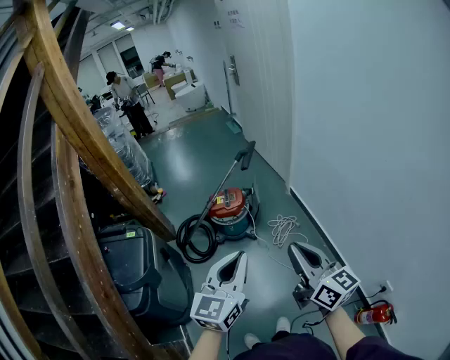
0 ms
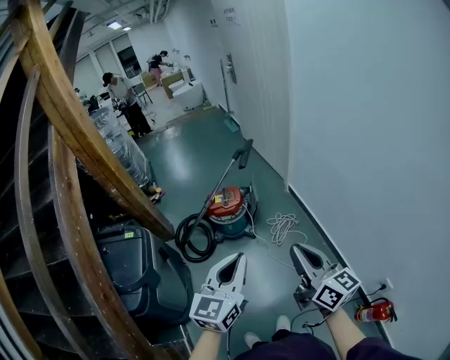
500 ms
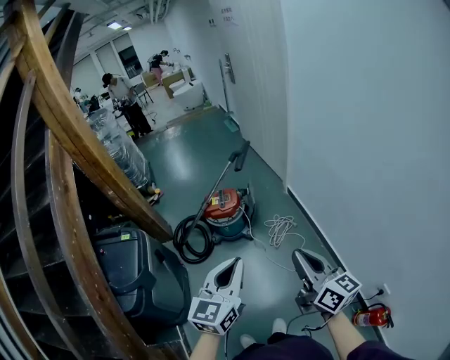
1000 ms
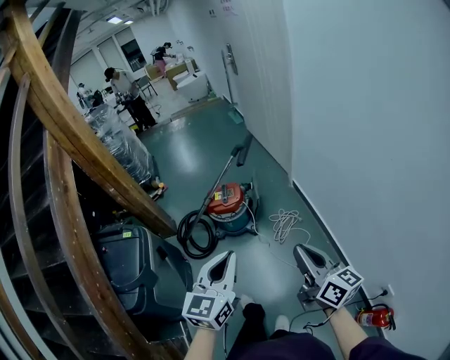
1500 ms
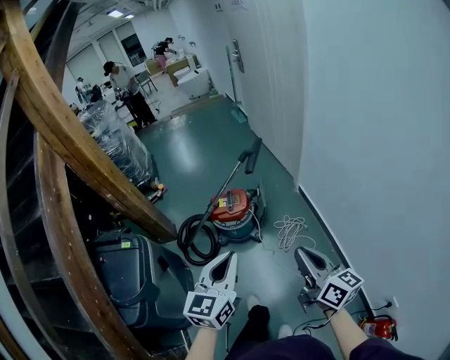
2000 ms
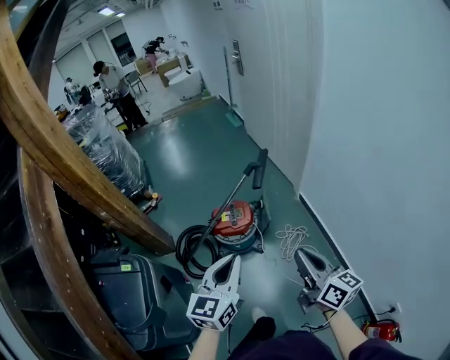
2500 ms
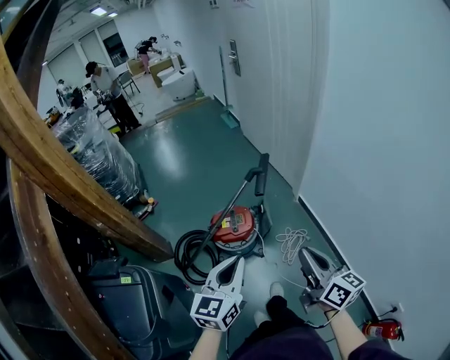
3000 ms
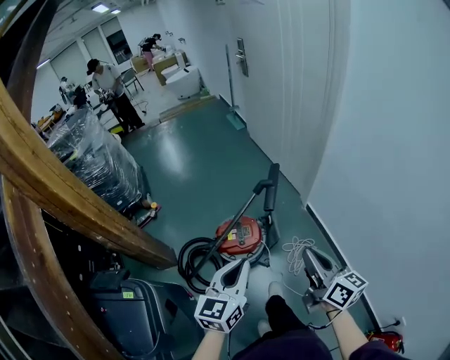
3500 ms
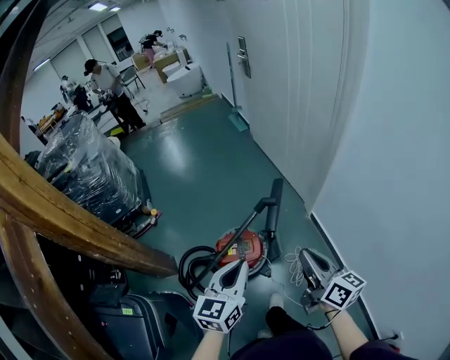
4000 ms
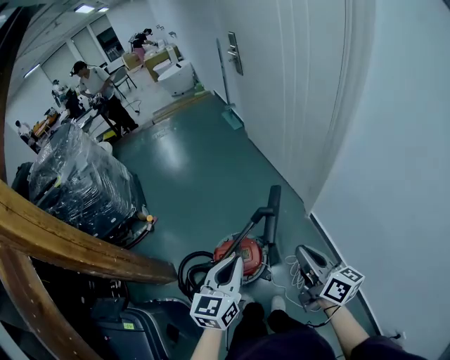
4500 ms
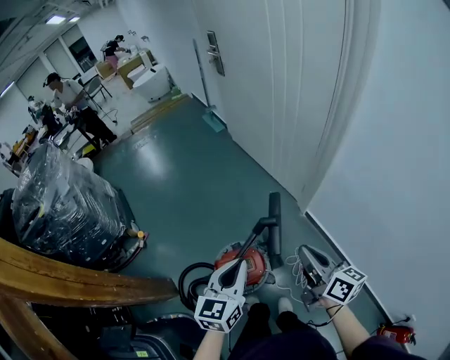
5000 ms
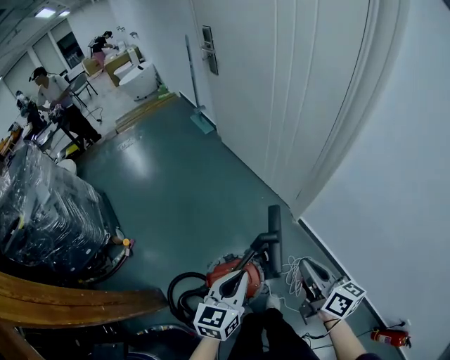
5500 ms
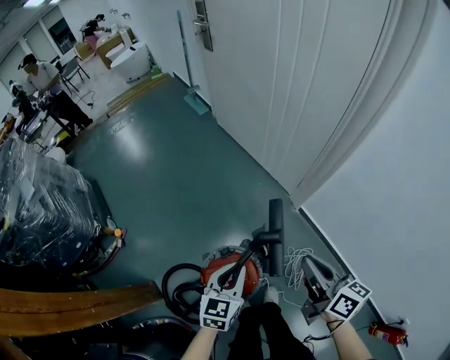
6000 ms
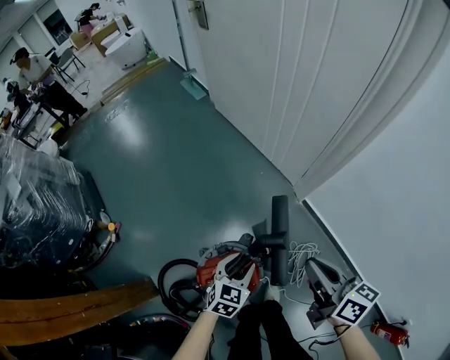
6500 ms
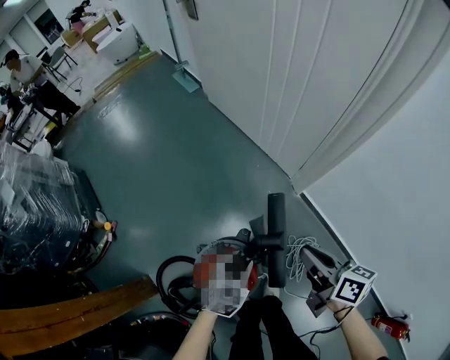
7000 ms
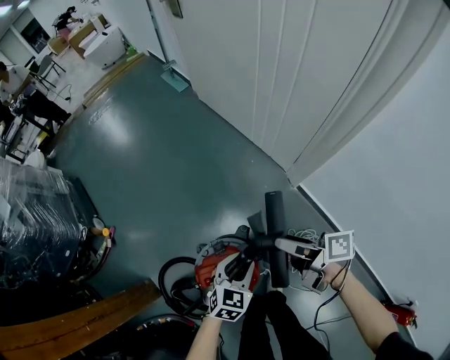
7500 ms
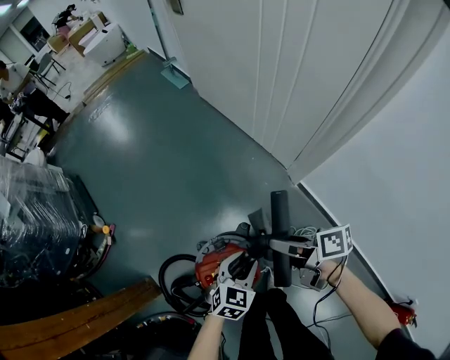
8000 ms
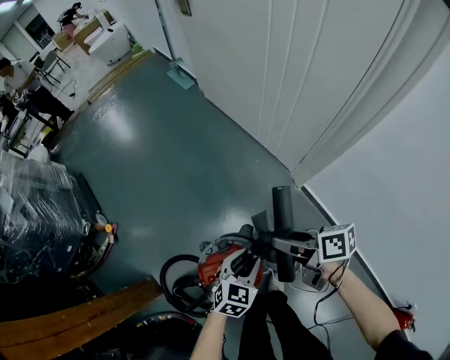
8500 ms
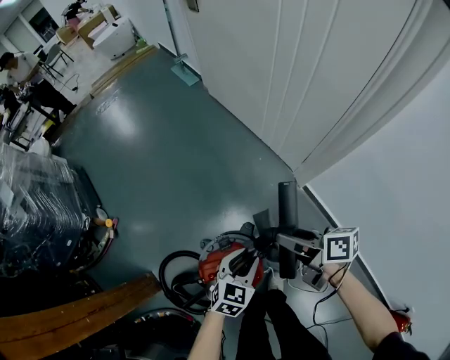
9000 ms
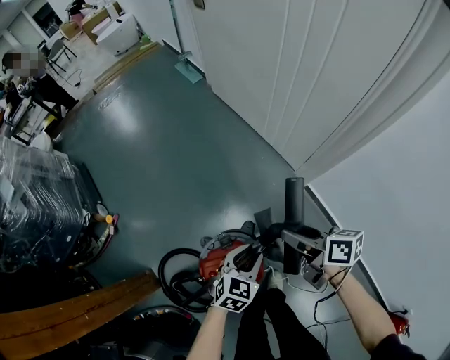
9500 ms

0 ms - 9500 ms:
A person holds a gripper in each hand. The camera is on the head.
0 ms - 2000 ms: The left gripper moves forward, roughly 15 cm; the right gripper is displaced forward and downward by roughly 15 cm.
2000 ms - 4000 ms: The grippers both shift forward by roughly 35 cm.
4000 ms - 5500 ms: The right gripper travels forward by roughly 15 cm. Meanwhile the left gripper travels forward and downward by approximately 20 cm.
5500 ms - 7500 ms: The right gripper shifts about 25 cm downward and forward, rotates some 40 degrees, and opens, while the left gripper travels downward by about 25 cm, rotates about 30 degrees, and opens its fingers.
7500 ms - 9500 ms: The right gripper turns by roughly 20 degrees.

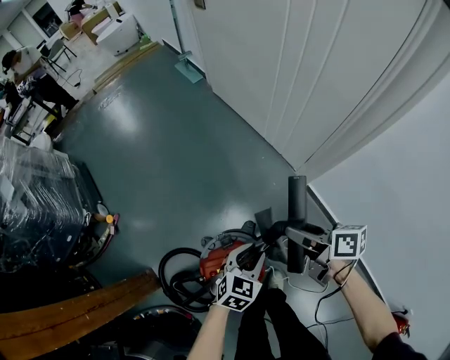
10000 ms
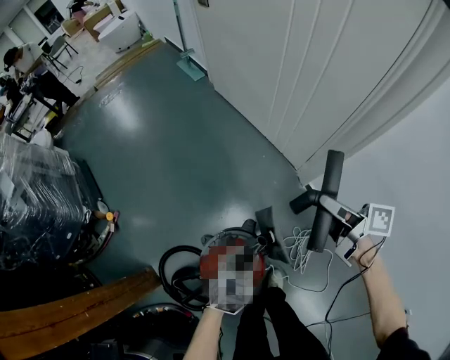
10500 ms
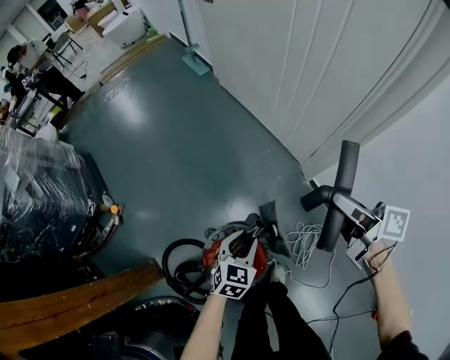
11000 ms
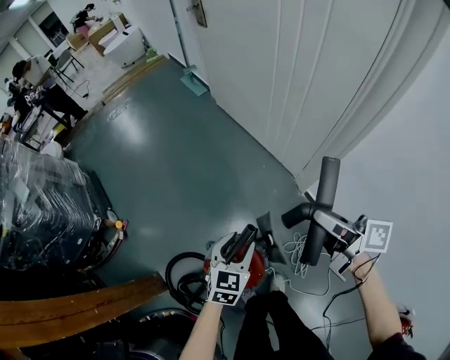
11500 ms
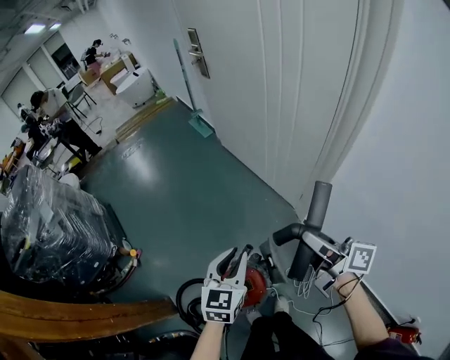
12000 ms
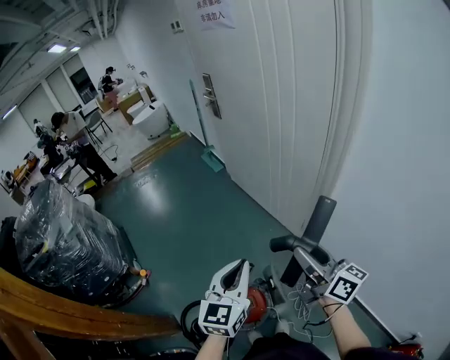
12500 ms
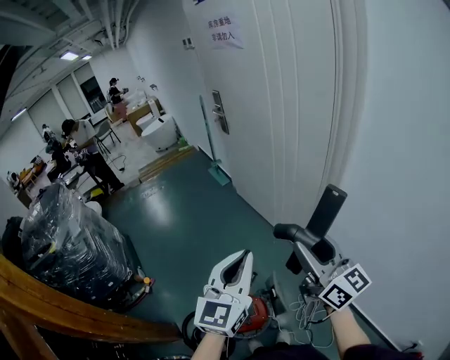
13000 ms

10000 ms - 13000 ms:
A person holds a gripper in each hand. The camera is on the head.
10000 ms - 11500 ms: The left gripper shifts about 10 cm upward, while the right gripper shifts approximately 15 cm upward.
11500 ms - 13000 ms: The two grippers go some 35 cm upward. The left gripper tilts its fingers roughly 30 degrees upward, and closes its fingers. The right gripper rolls counterclockwise, seen from behind, by some 50 degrees.

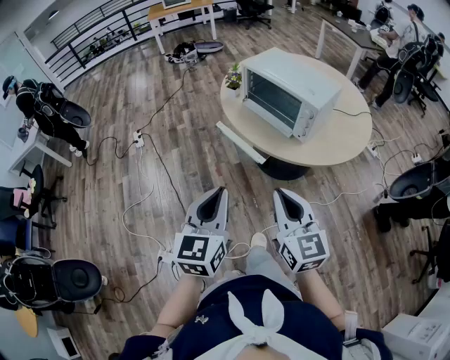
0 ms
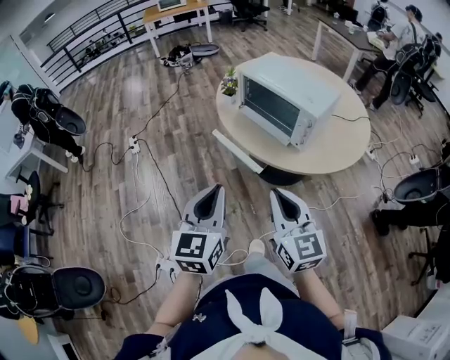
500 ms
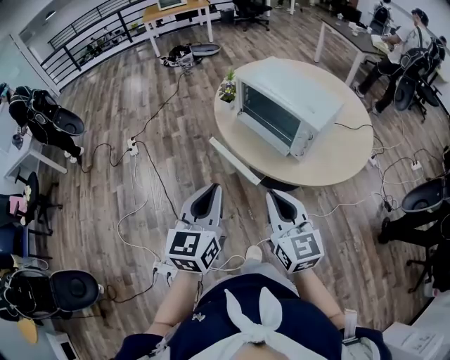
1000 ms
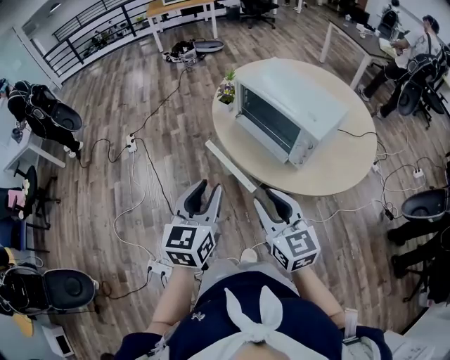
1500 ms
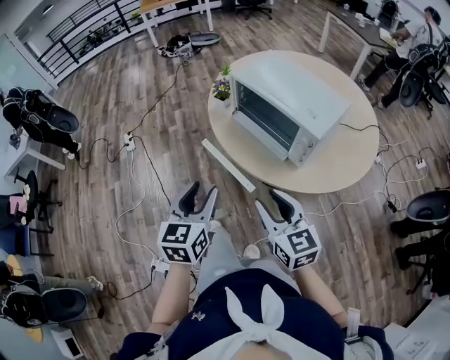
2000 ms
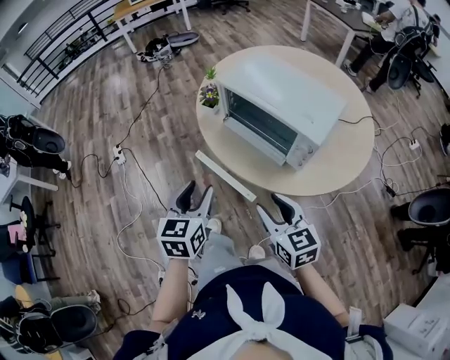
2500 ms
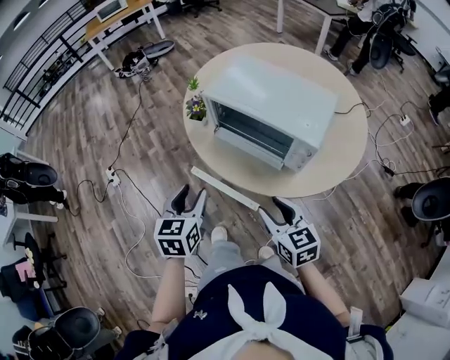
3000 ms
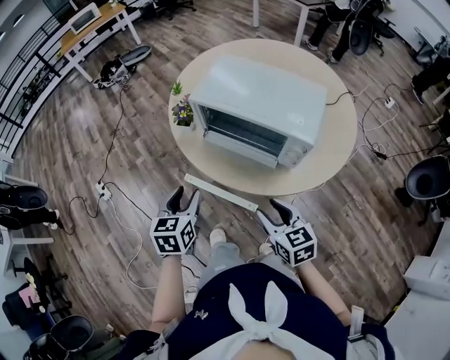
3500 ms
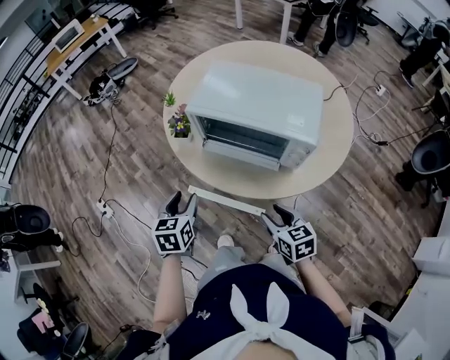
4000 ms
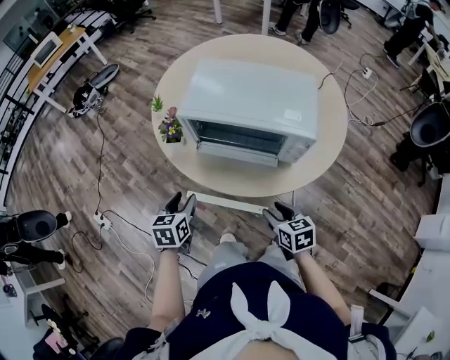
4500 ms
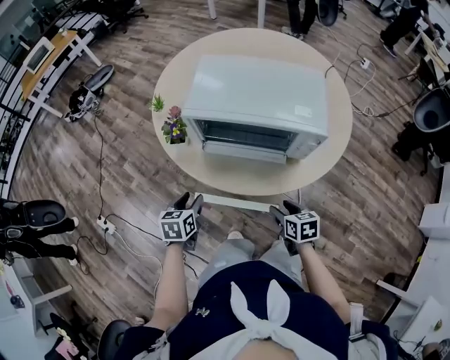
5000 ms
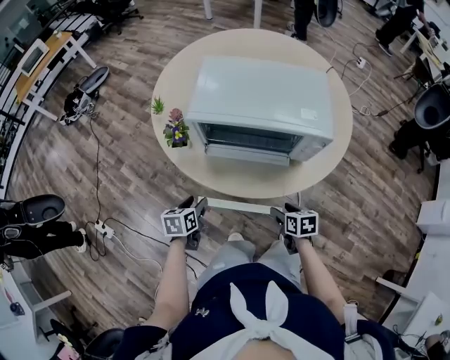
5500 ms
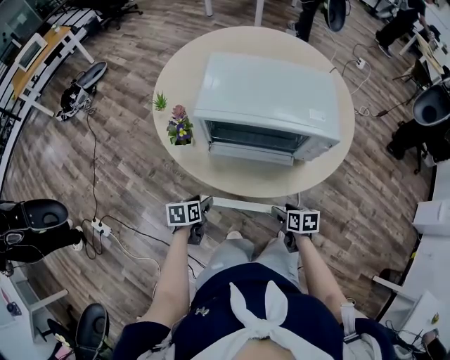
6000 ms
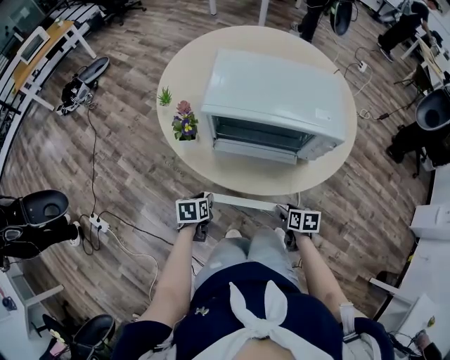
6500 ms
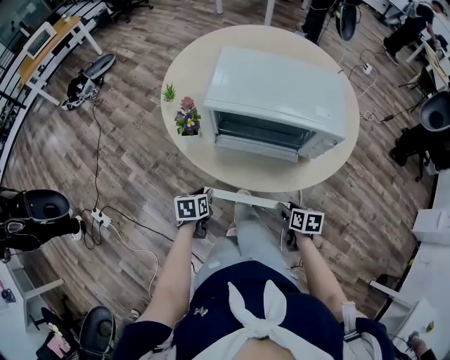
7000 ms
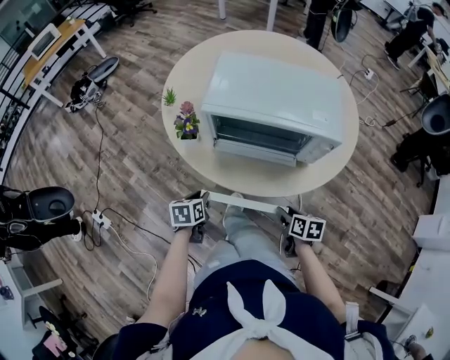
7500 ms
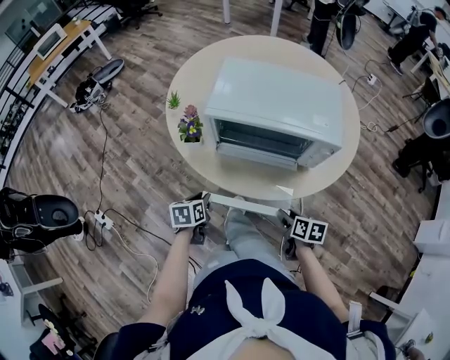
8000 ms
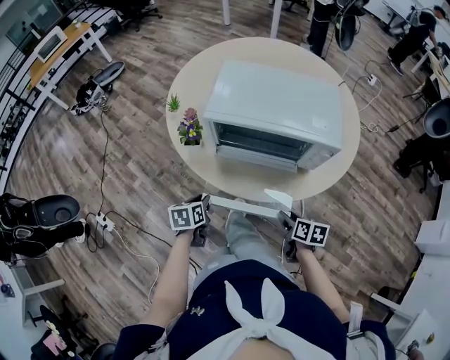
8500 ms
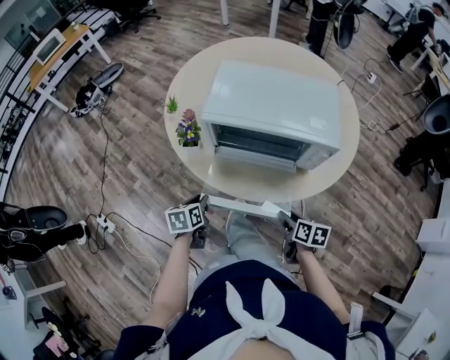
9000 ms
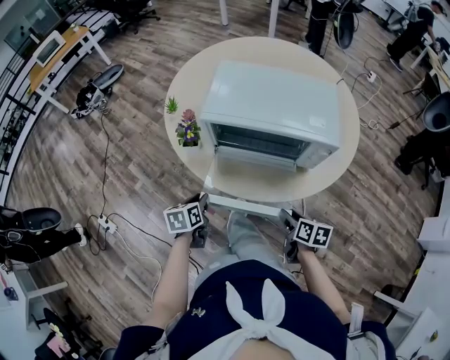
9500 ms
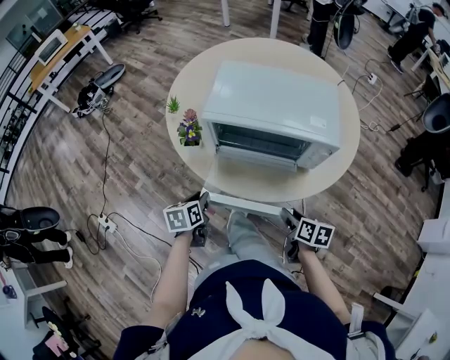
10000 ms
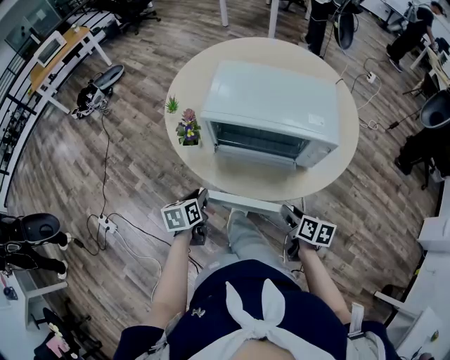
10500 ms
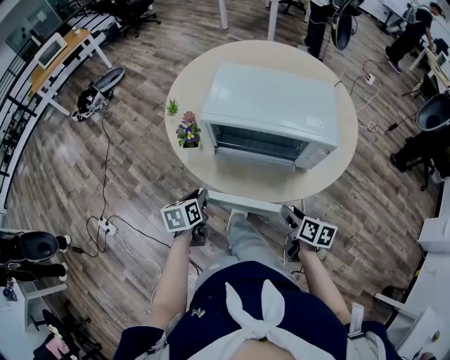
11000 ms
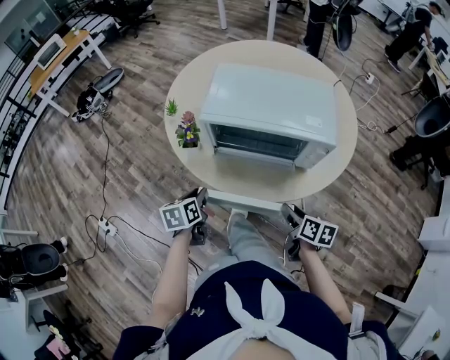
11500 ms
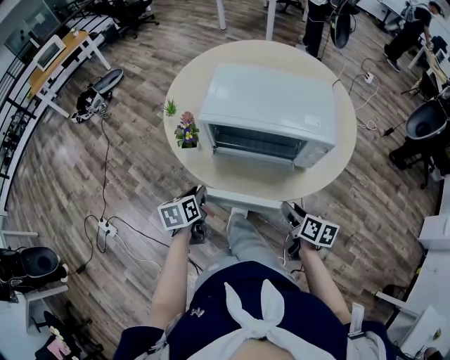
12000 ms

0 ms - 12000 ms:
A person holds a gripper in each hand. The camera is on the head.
0 ms - 2000 ms: The left gripper goes approximately 20 cm forward, and opens its fingers; the right gripper is displaced forward and downward by roughly 15 cm, and opens its fingers.
2000 ms - 4000 ms: The right gripper heads downward and forward, covering approximately 15 cm, and changes its angle by approximately 40 degrees. Meanwhile the left gripper heads forward and downward, covering some 25 cm, and swivels some 30 degrees.
4000 ms - 6000 ms: The two grippers go some 20 cm downward. The left gripper rotates approximately 30 degrees; the right gripper swivels some 40 degrees.
6000 ms - 8000 ms: The left gripper closes up.
8000 ms - 10000 ms: The grippers stay close to where they were, moving slightly.
10000 ms - 12000 ms: The grippers stay close to where they were, moving slightly.

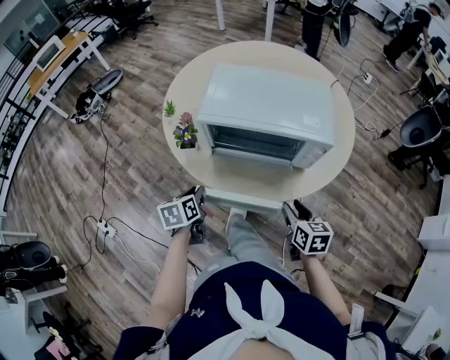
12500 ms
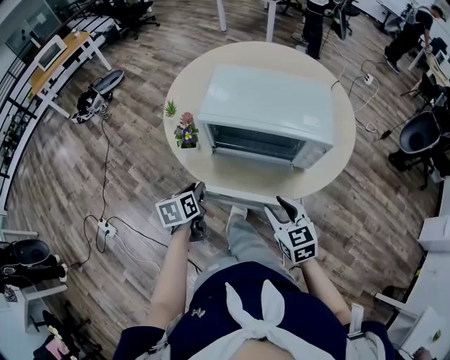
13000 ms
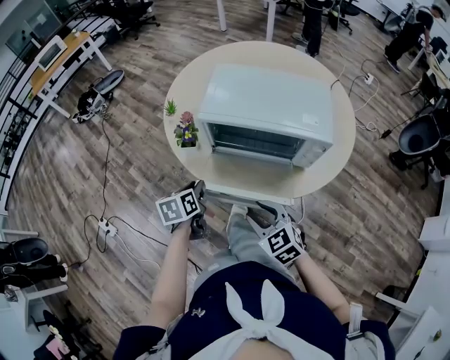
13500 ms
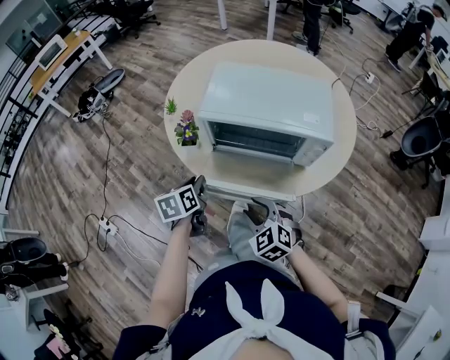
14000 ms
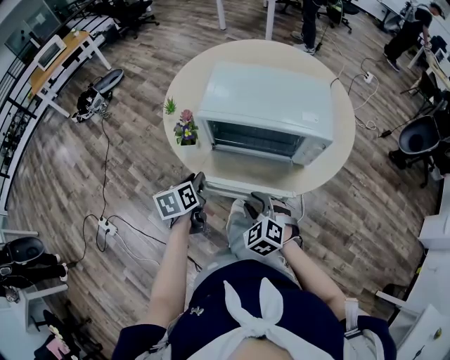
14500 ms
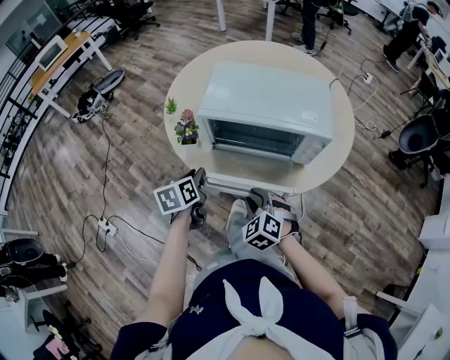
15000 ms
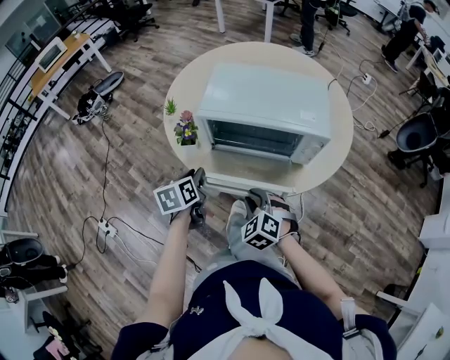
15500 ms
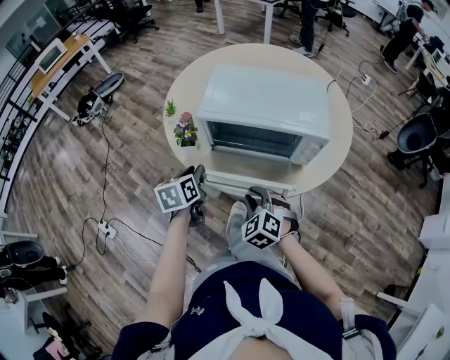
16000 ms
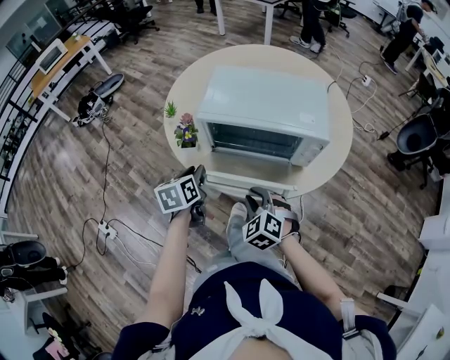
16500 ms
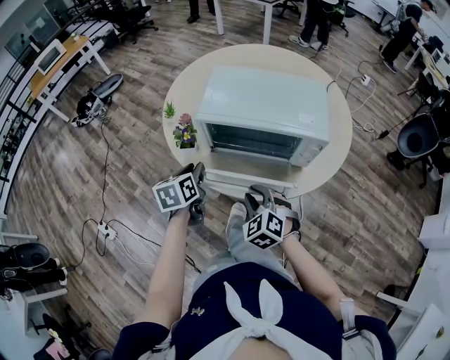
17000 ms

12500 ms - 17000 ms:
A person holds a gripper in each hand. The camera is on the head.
12500 ms - 14500 ms: The right gripper is displaced to the left by about 15 cm, and twists roughly 60 degrees counterclockwise, seen from behind.
14500 ms - 17000 ms: The grippers stay close to where they were, moving slightly.
